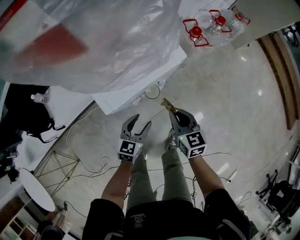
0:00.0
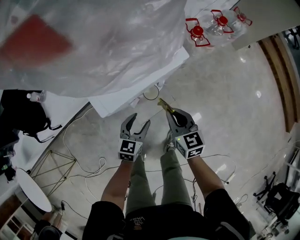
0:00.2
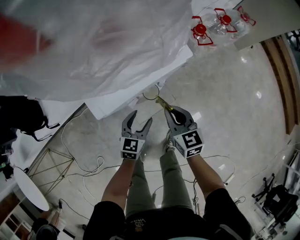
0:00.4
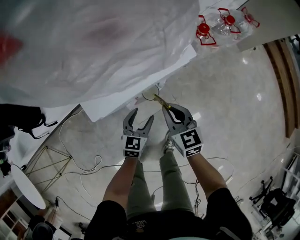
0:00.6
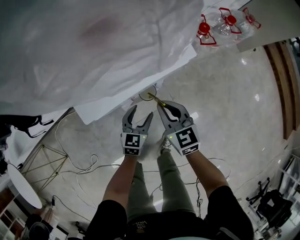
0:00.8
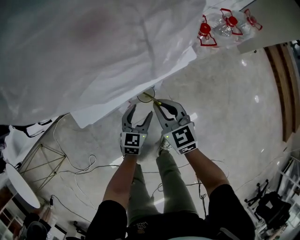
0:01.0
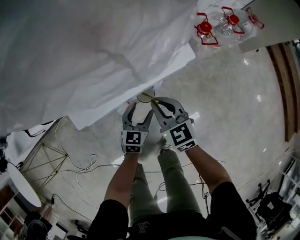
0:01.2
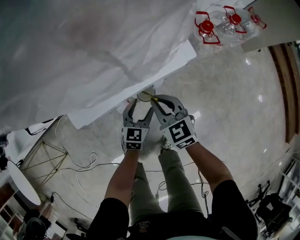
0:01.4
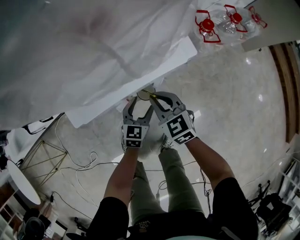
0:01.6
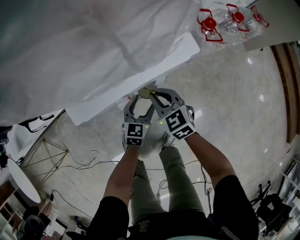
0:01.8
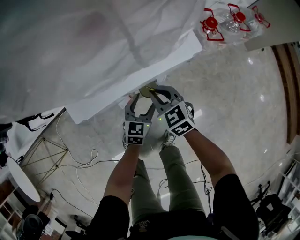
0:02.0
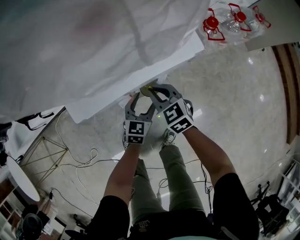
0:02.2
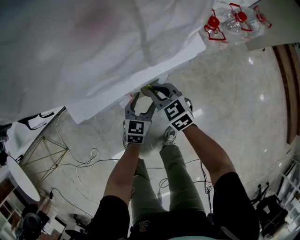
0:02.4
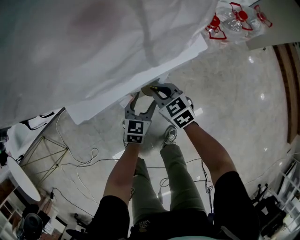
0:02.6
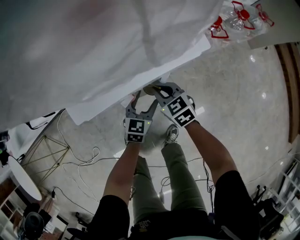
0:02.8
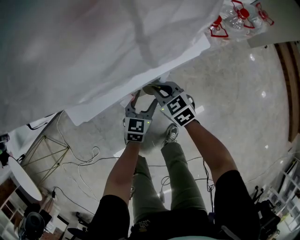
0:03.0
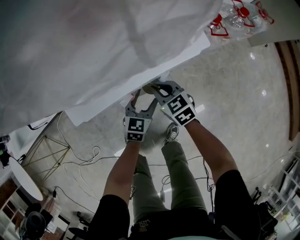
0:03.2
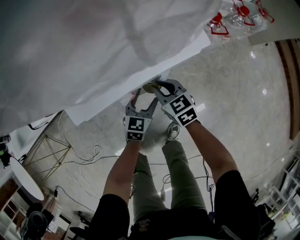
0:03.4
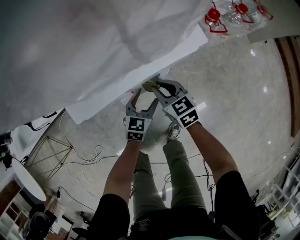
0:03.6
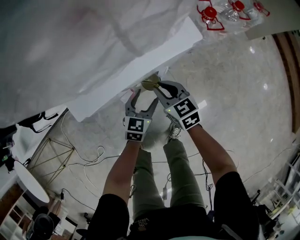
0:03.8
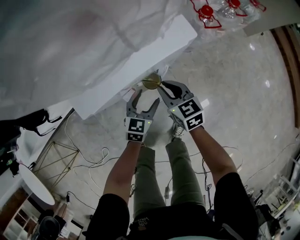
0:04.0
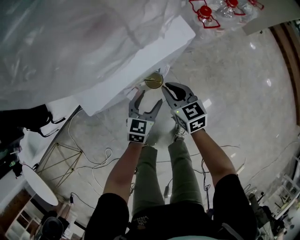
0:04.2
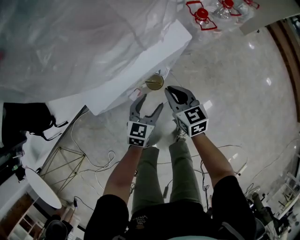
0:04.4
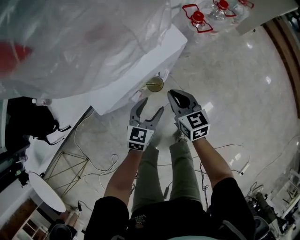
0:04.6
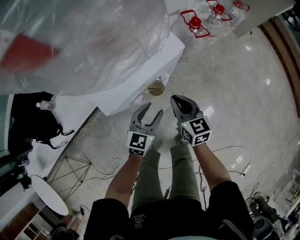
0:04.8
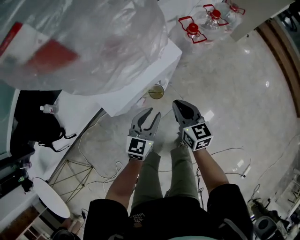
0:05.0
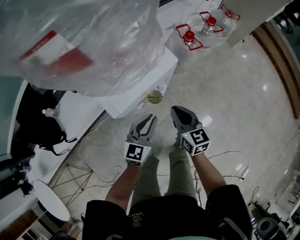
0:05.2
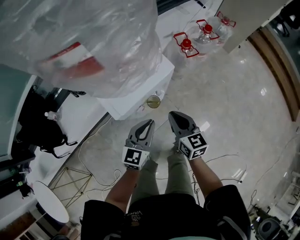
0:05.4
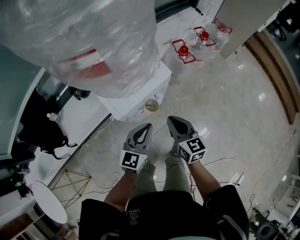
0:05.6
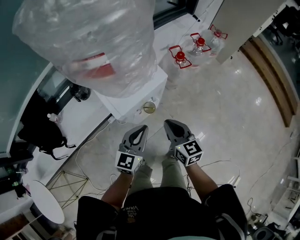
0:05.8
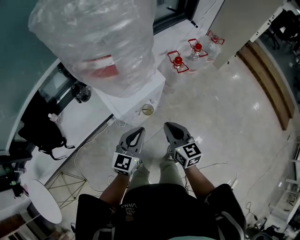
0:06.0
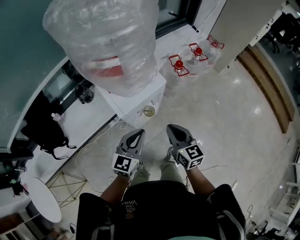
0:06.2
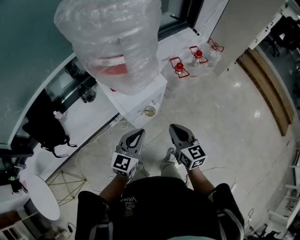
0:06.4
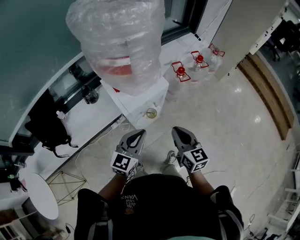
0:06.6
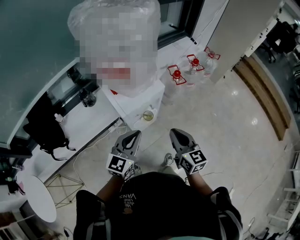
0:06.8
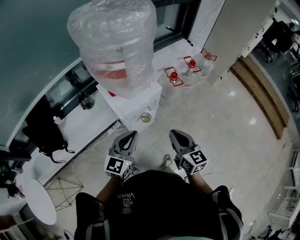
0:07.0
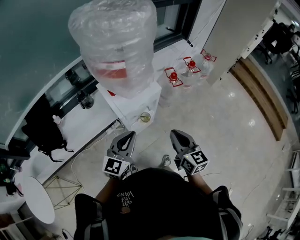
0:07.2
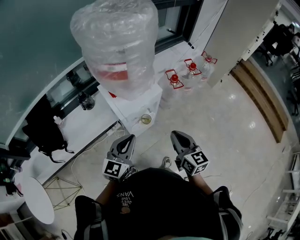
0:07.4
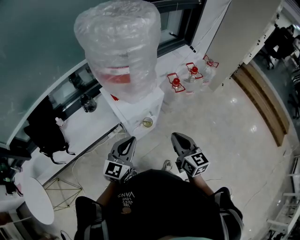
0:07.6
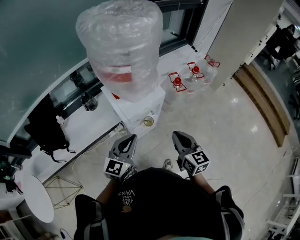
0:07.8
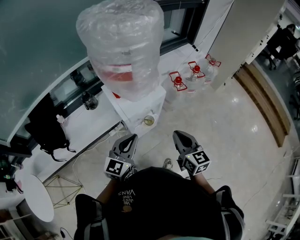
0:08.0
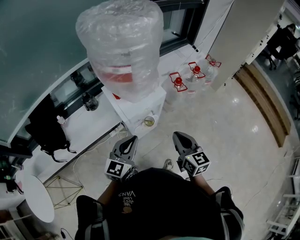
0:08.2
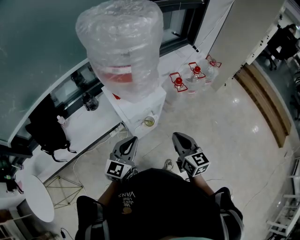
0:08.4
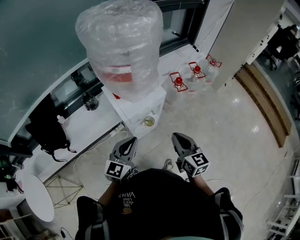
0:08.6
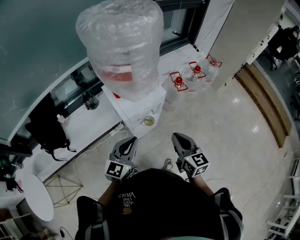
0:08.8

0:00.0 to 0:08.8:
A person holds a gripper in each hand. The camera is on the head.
0:00.0 to 0:01.4: The grippers both shift downward and forward by some 10 cm. The right gripper rotates about 30 degrees.
0:01.4 to 0:03.0: The right gripper goes approximately 10 cm downward.
0:03.0 to 0:04.4: Both grippers move upward, some 10 cm. The right gripper rotates approximately 30 degrees.
0:04.4 to 0:05.8: Both grippers move upward, about 25 cm. The left gripper closes.
0:05.8 to 0:07.4: Both grippers move upward and backward, roughly 15 cm.
0:07.4 to 0:08.8: Both grippers stay about where they are.

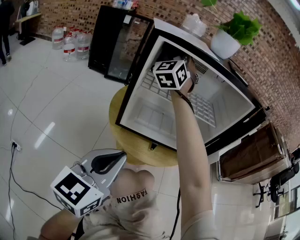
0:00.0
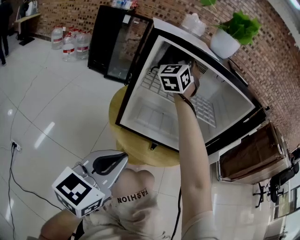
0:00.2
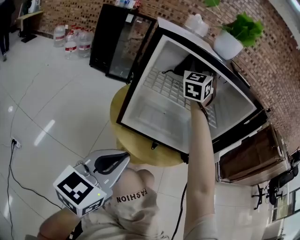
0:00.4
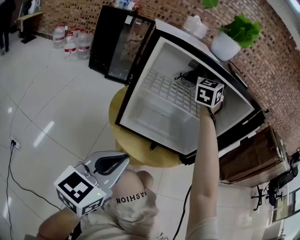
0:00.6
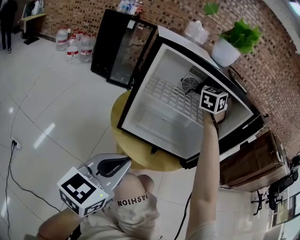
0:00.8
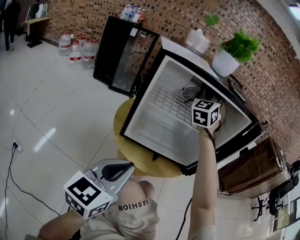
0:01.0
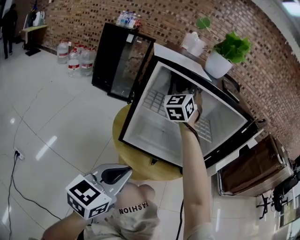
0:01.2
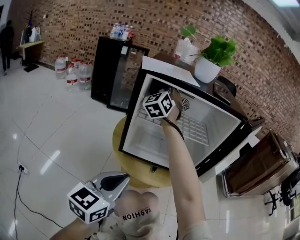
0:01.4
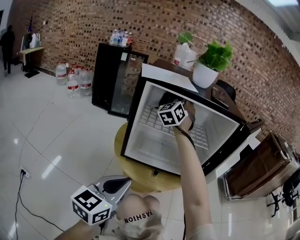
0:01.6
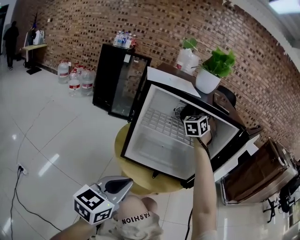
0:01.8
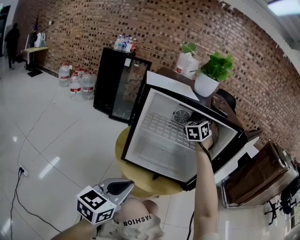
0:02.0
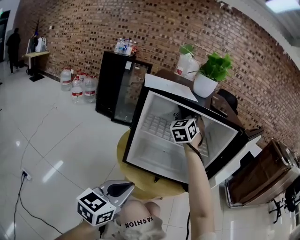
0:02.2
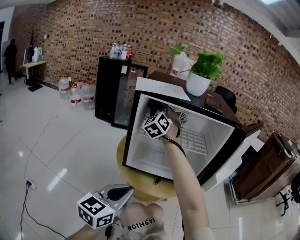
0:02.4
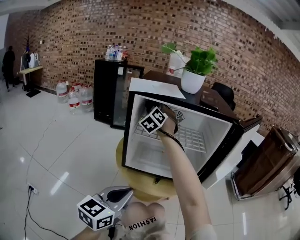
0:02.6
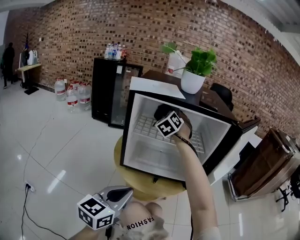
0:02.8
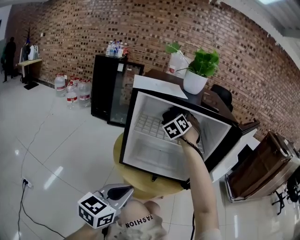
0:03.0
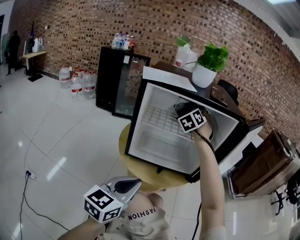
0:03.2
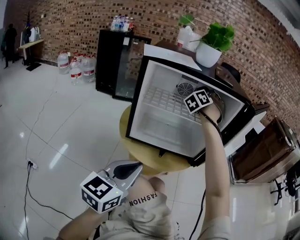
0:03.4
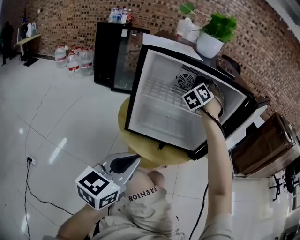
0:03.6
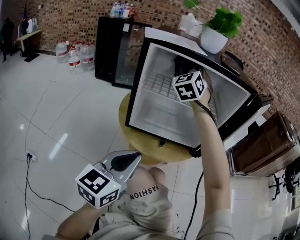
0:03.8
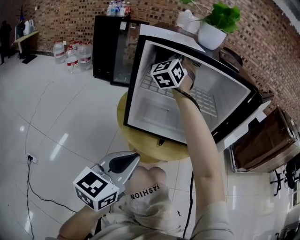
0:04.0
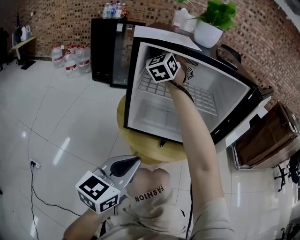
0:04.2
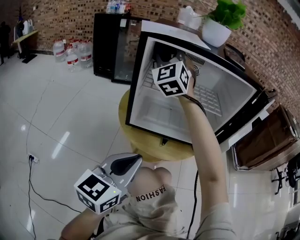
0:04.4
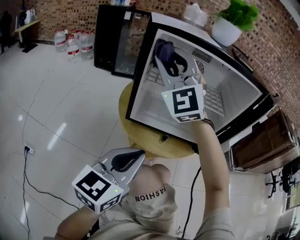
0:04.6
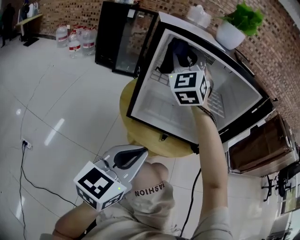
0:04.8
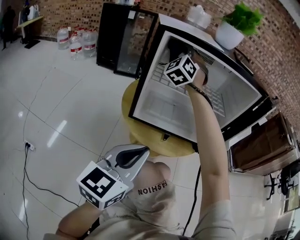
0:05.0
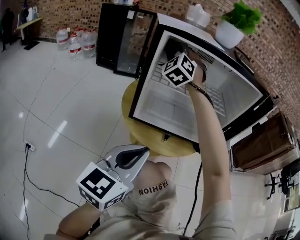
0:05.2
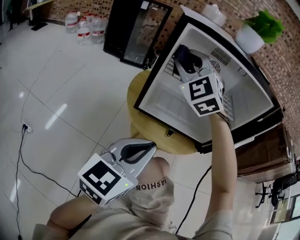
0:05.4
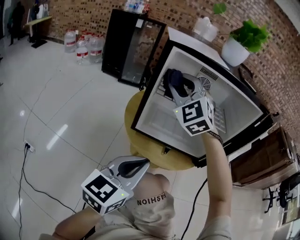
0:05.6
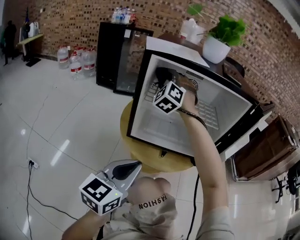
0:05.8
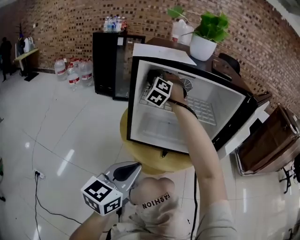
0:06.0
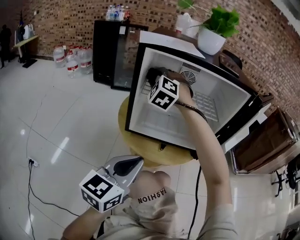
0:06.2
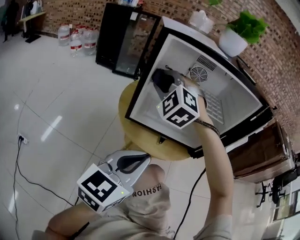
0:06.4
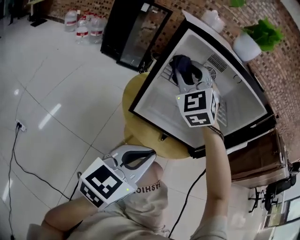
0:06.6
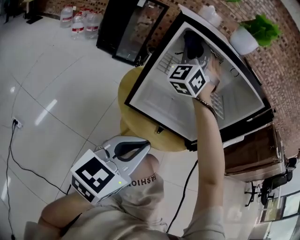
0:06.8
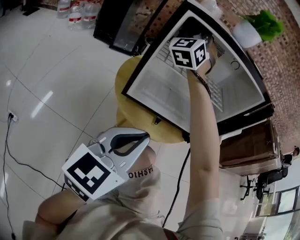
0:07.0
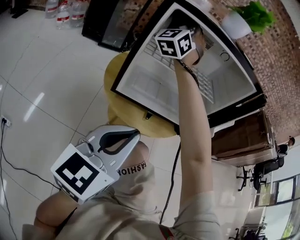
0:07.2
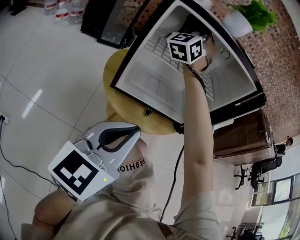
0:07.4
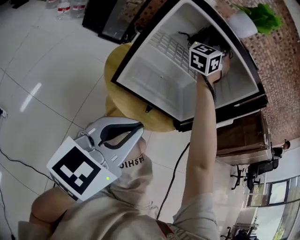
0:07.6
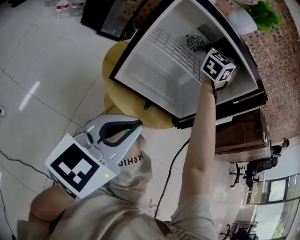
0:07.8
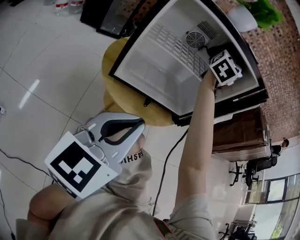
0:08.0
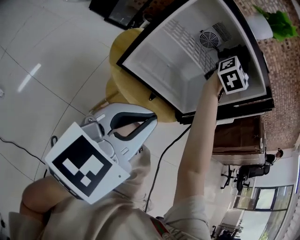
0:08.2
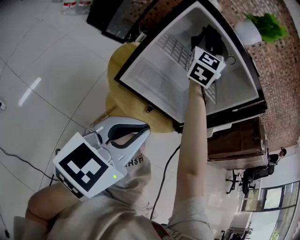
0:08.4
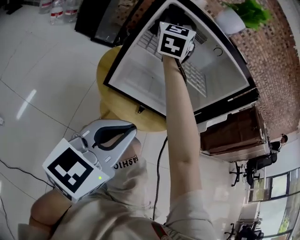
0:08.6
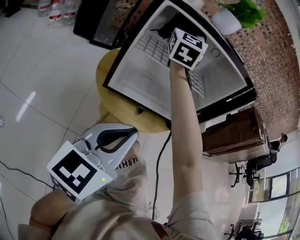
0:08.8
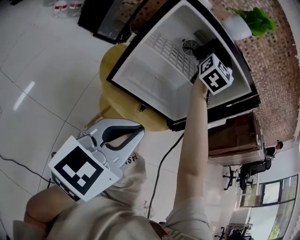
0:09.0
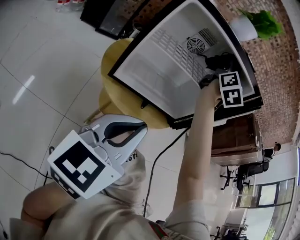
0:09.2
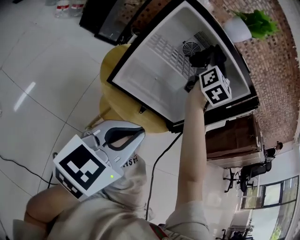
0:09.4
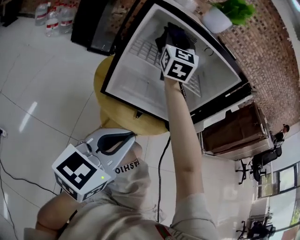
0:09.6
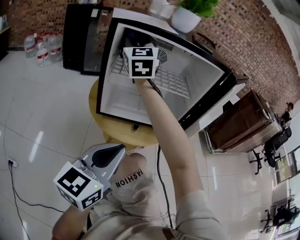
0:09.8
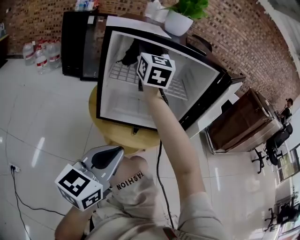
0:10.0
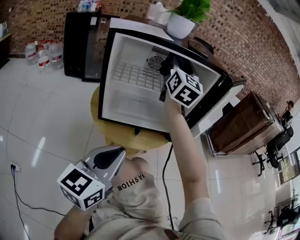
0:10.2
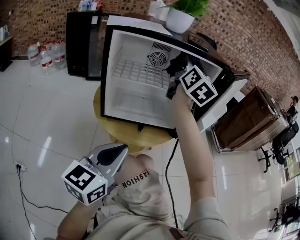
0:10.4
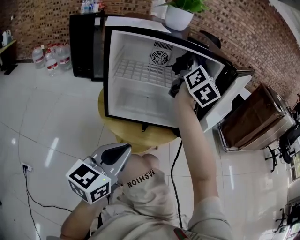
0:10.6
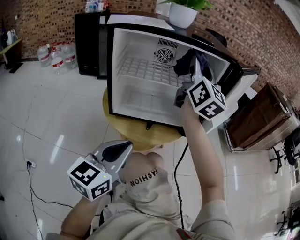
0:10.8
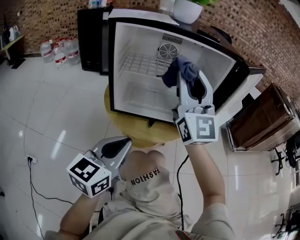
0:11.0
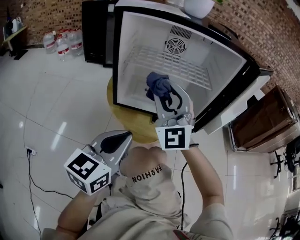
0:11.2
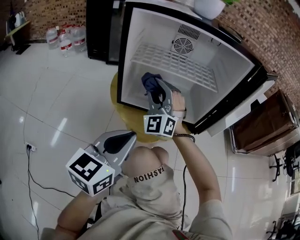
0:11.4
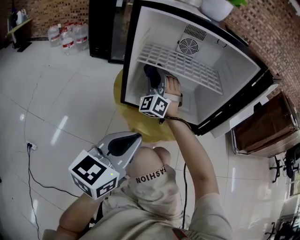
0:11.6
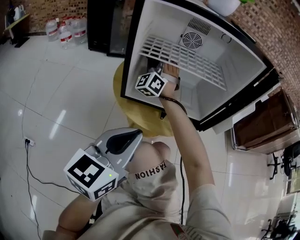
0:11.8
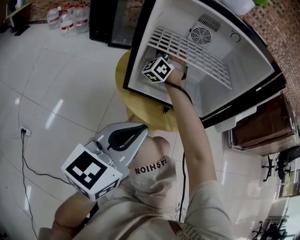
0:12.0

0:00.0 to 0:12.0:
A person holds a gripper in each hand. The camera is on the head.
0:00.0 to 0:01.6: The right gripper swings left and right, roughly 25 cm each way, with 2 reversals.
0:01.6 to 0:03.0: The right gripper moves left and right over about 20 cm, changing direction 2 times.
0:03.0 to 0:04.4: The right gripper shifts by roughly 20 cm, and rotates approximately 40 degrees.
0:04.4 to 0:06.0: The right gripper swings forward and backward, some 20 cm each way, with 3 reversals, and swivels about 30 degrees.
0:06.0 to 0:07.6: The right gripper goes some 20 cm to the right and upward, and tips its fingers upward by some 30 degrees; the left gripper moves roughly 5 cm.
0:07.6 to 0:09.0: The right gripper goes left and right, approximately 25 cm each way, reversing 2 times, and swivels roughly 40 degrees.
0:09.0 to 0:10.4: The right gripper moves left and right over about 25 cm, changing direction 2 times, and turns by about 30 degrees.
0:10.4 to 0:12.0: The right gripper is displaced to the left and downward by roughly 35 cm, and rolls counterclockwise, seen from behind, by approximately 90 degrees.

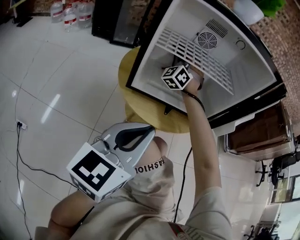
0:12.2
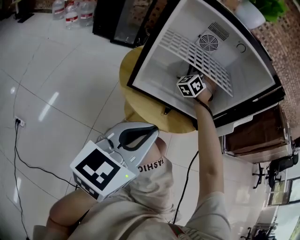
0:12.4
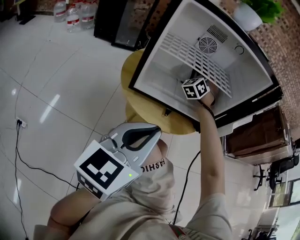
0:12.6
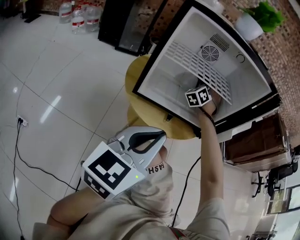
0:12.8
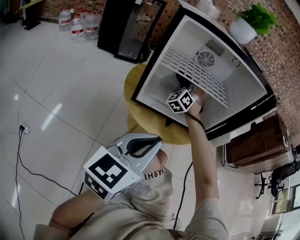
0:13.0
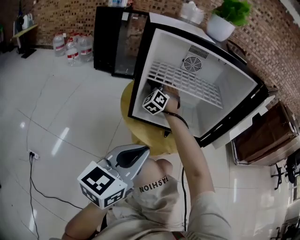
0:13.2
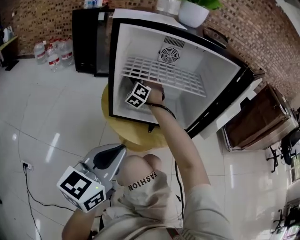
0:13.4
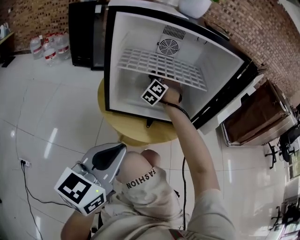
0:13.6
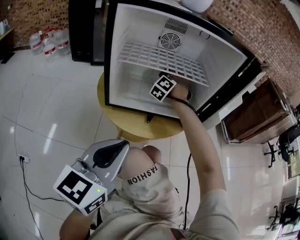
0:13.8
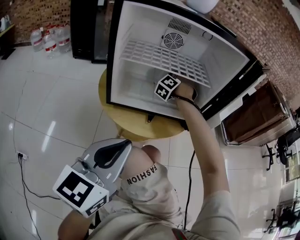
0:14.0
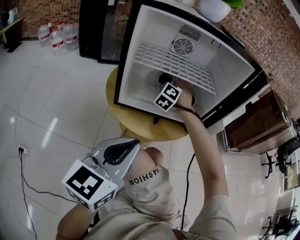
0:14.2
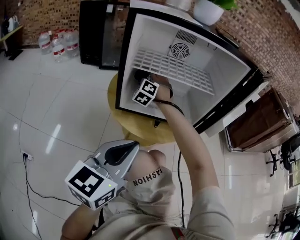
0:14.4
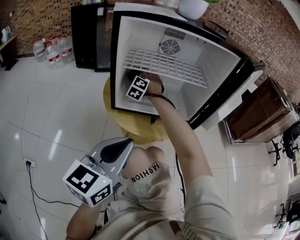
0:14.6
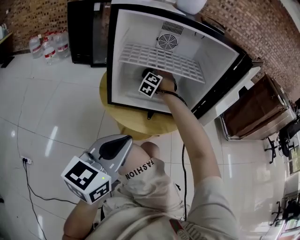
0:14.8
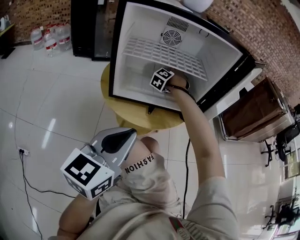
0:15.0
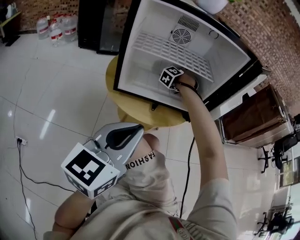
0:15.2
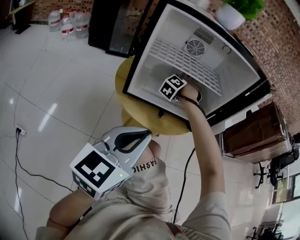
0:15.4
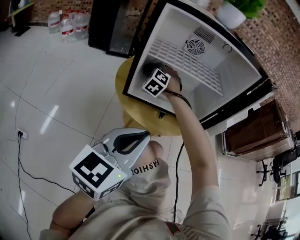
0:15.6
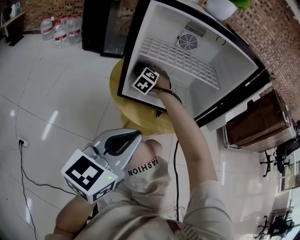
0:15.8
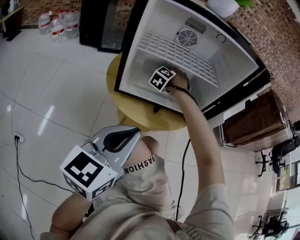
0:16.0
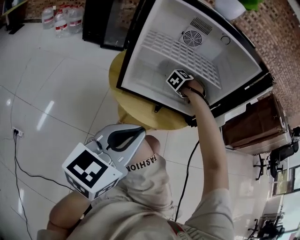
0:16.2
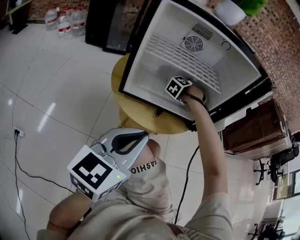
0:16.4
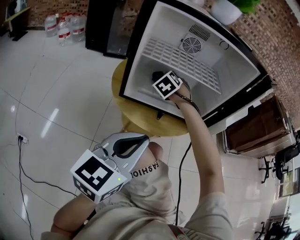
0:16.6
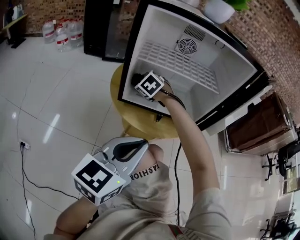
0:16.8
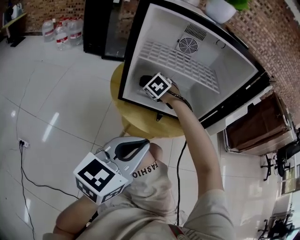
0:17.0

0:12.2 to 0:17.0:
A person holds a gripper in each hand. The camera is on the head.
0:12.2 to 0:13.8: The right gripper goes left and right, roughly 20 cm each way, reversing 2 times, and swivels approximately 30 degrees.
0:13.8 to 0:15.4: The right gripper swings left and right, approximately 20 cm each way, with 2 reversals.
0:15.4 to 0:17.0: The right gripper moves up and down over about 5 cm, changing direction 2 times, and changes its angle by about 40 degrees.
